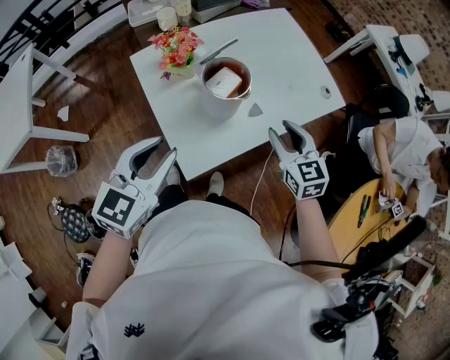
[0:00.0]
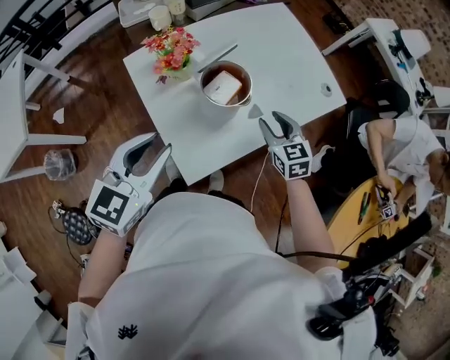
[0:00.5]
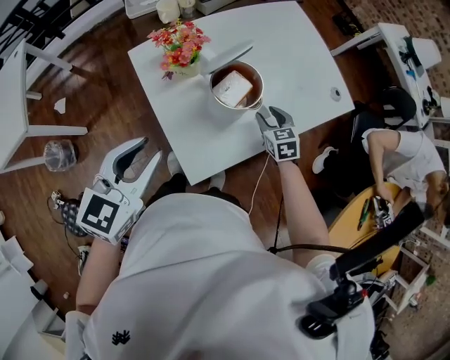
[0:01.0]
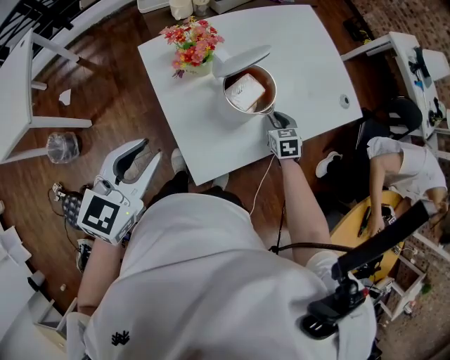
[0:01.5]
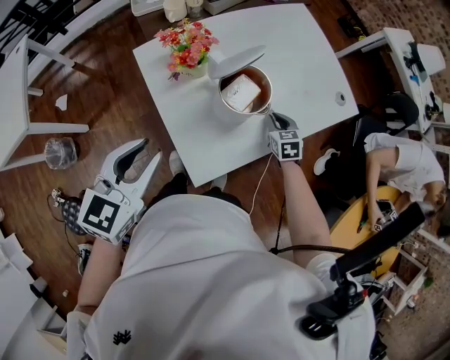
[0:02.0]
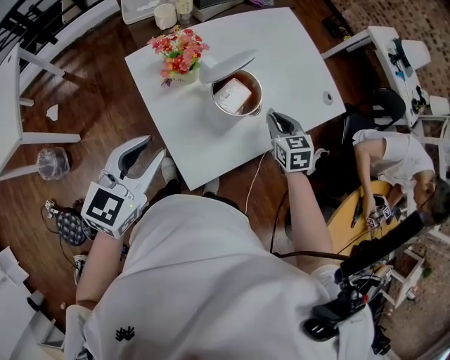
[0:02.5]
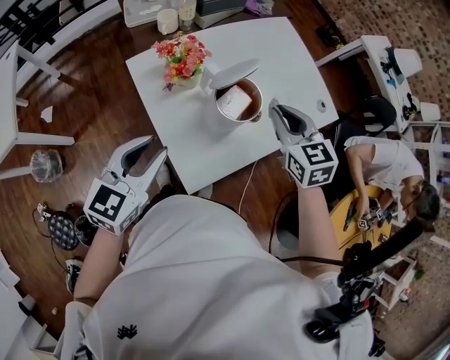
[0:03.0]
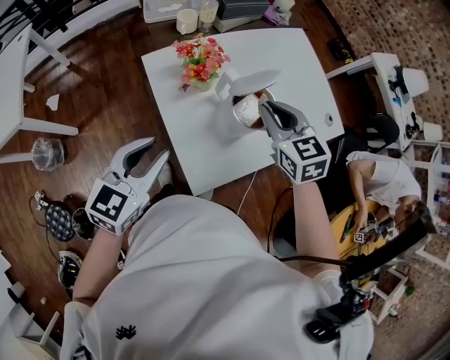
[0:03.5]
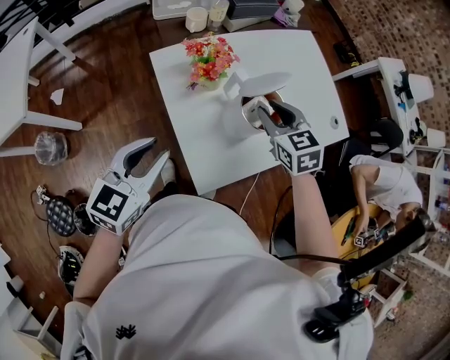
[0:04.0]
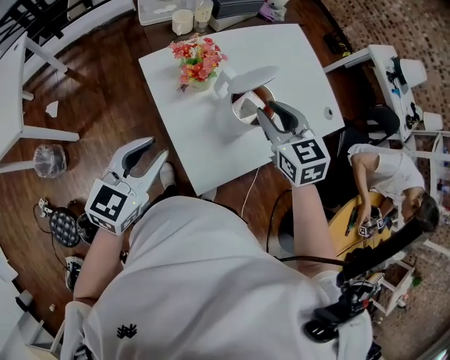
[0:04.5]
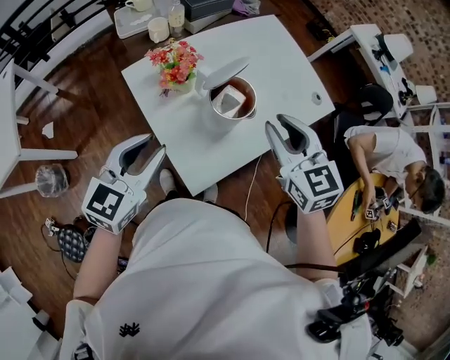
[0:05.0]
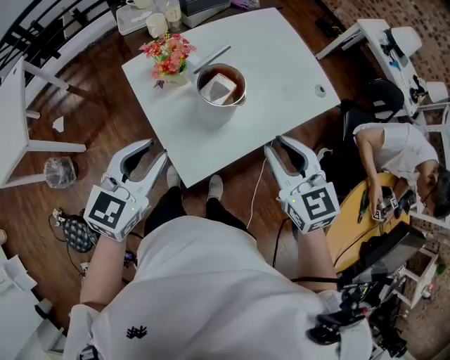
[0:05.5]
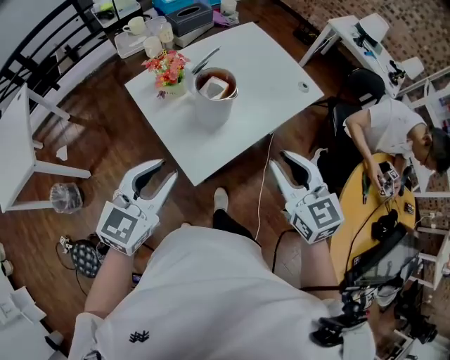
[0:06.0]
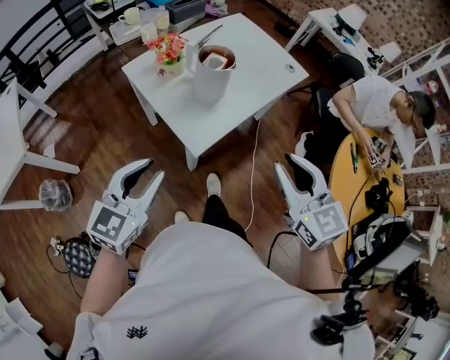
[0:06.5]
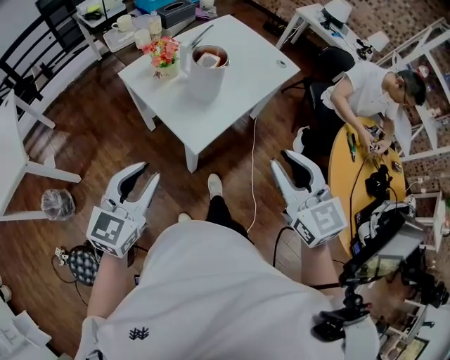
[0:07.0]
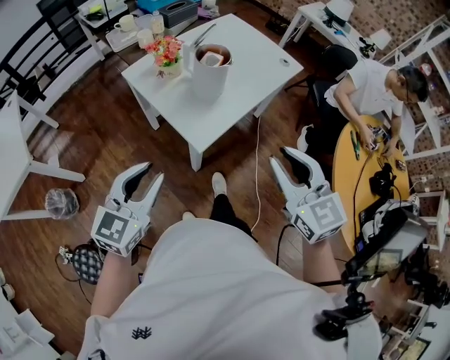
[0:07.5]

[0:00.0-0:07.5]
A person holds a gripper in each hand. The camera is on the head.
0:00.0 to 0:02.0: The right gripper shifts about 25 cm downward and forward, swivels about 20 degrees, and closes up. The left gripper is displaced to the left by roughly 5 cm.
0:02.0 to 0:04.0: The left gripper is displaced to the left by roughly 5 cm; the right gripper goes approximately 25 cm upward and to the left, and turns by about 20 degrees.
0:04.0 to 0:05.5: The left gripper moves to the right, approximately 10 cm. Meanwhile the right gripper travels backward, to the right and upward by about 20 cm.
0:05.5 to 0:07.5: The grippers both shift backward by some 25 cm.

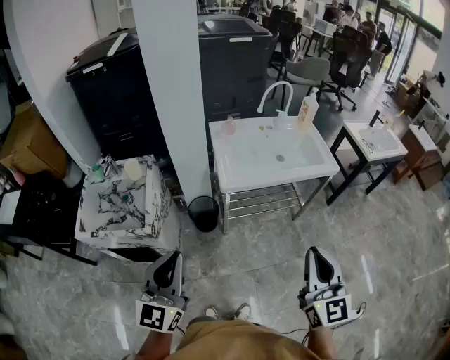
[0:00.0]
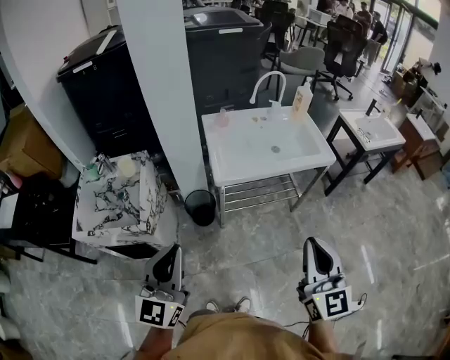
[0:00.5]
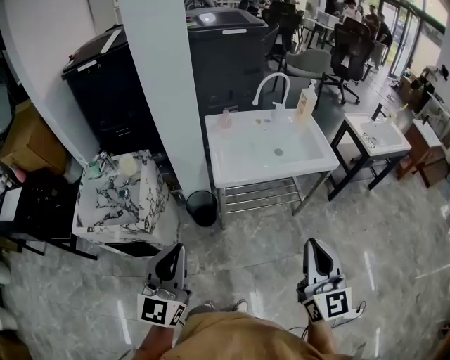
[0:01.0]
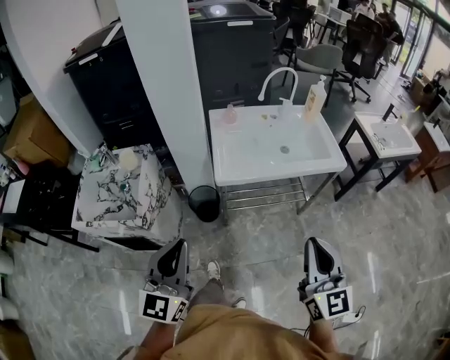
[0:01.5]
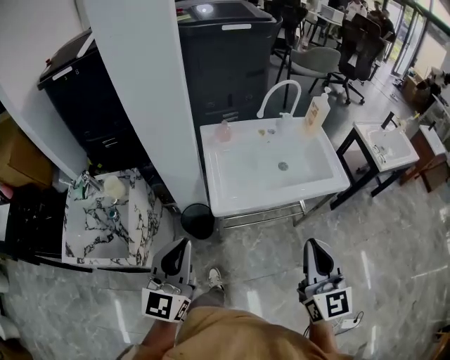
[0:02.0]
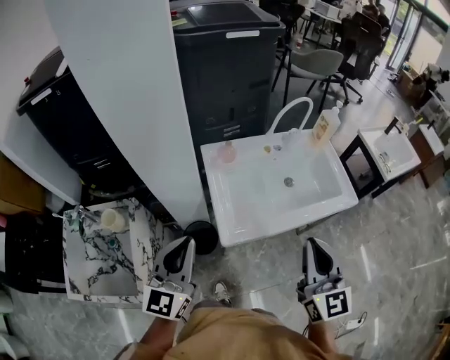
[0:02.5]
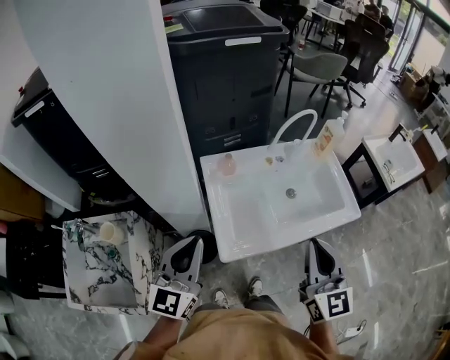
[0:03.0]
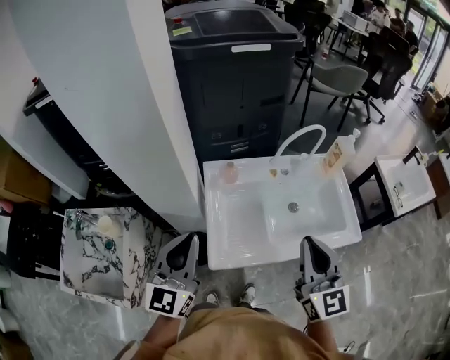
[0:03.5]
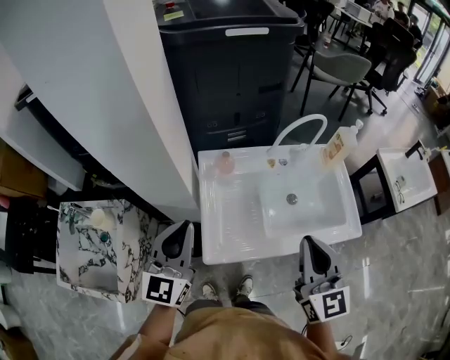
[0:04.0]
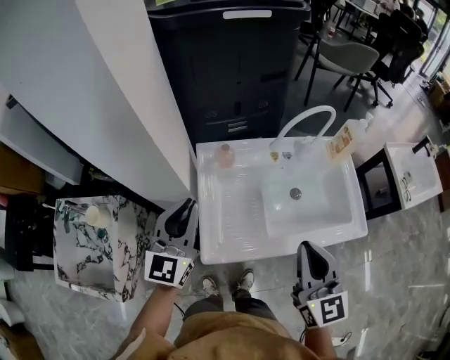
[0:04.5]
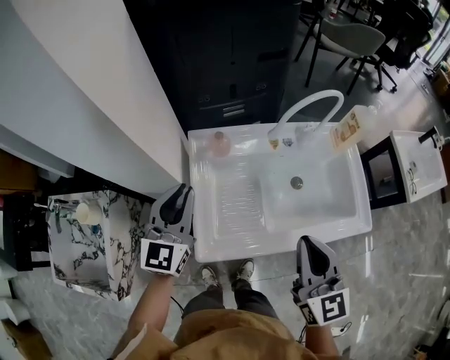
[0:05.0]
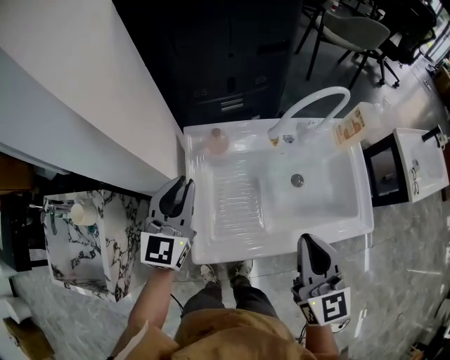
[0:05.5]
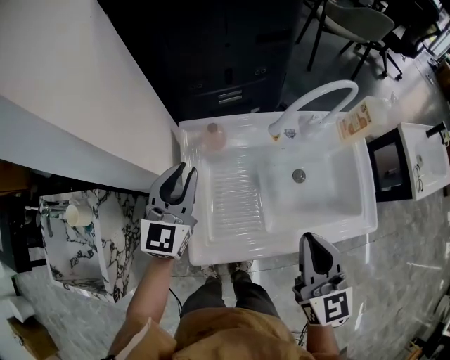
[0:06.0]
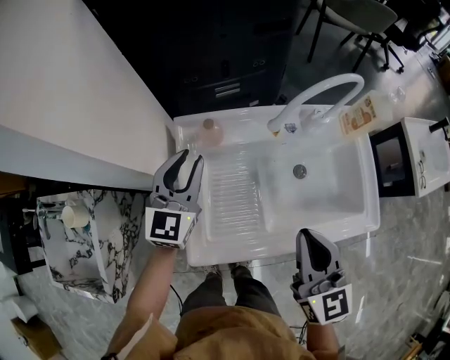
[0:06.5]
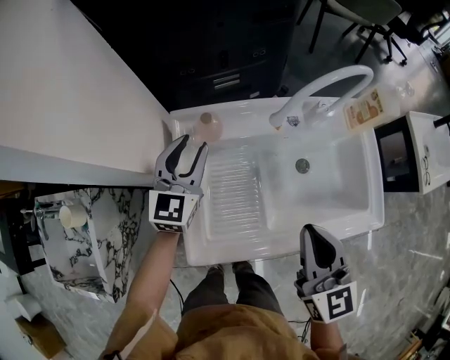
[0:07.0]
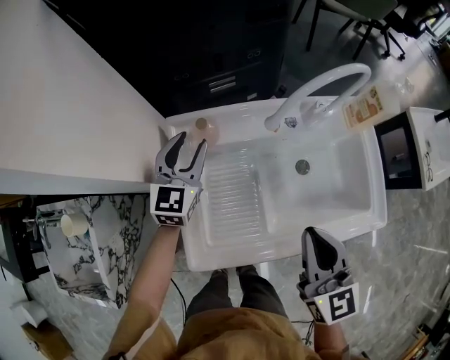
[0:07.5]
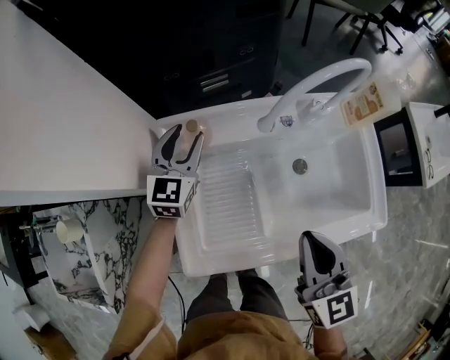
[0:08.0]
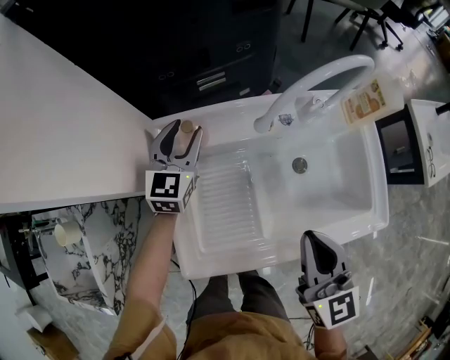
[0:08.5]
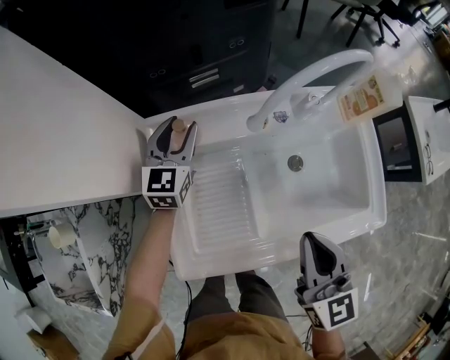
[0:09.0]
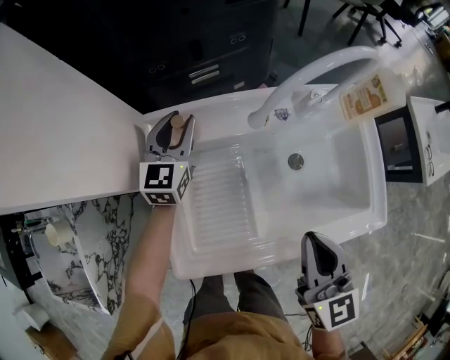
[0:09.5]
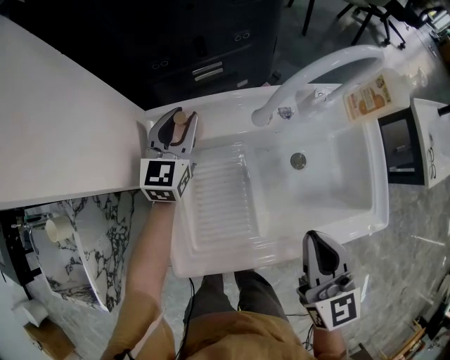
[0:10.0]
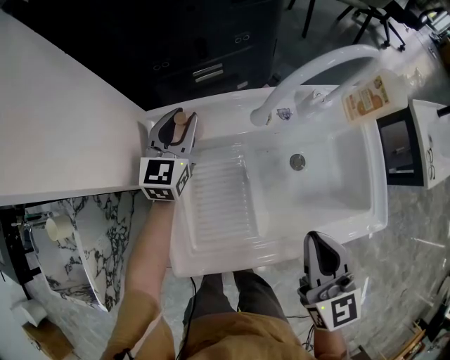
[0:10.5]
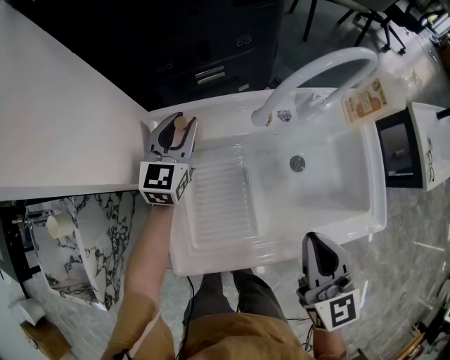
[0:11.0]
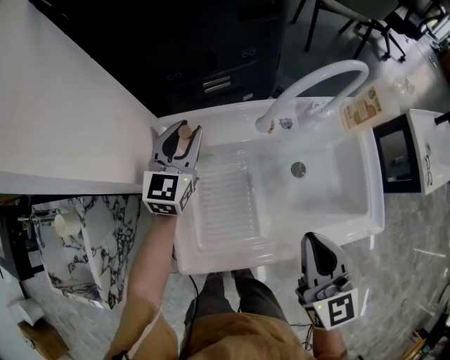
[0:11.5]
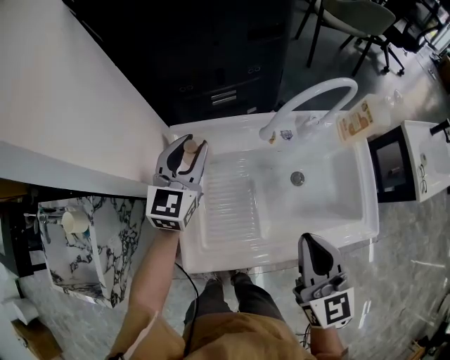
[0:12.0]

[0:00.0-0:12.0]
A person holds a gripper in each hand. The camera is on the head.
0:00.0 to 0:02.0: The grippers both shift forward by roughly 20 cm.
0:02.0 to 0:04.0: Both grippers move forward, about 25 cm.
0:04.0 to 0:06.0: The left gripper heads forward and downward, covering roughly 20 cm; the right gripper is displaced downward and forward by roughly 10 cm.
0:06.0 to 0:08.0: The right gripper changes place by roughly 5 cm. The left gripper moves forward and downward, roughly 15 cm, and opens its fingers.
0:08.0 to 0:10.0: There are only small adjustments of the grippers.
0:10.0 to 0:12.0: The right gripper is displaced upward by roughly 5 cm. The left gripper travels upward and backward by roughly 10 cm.

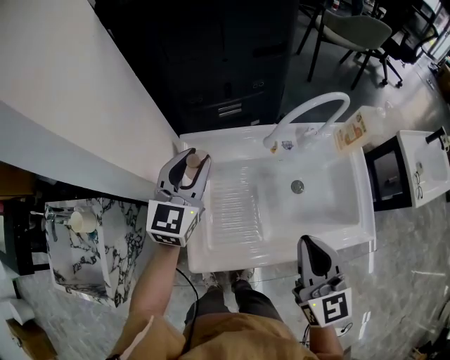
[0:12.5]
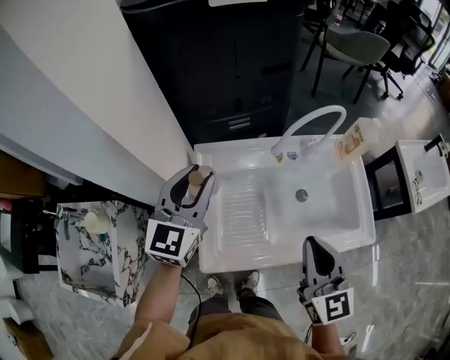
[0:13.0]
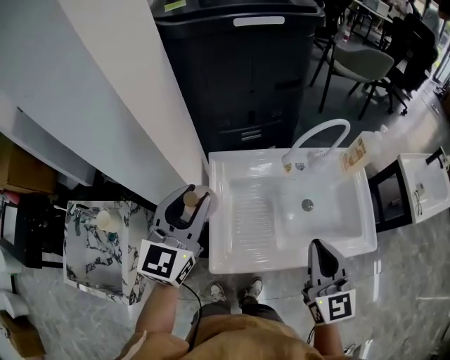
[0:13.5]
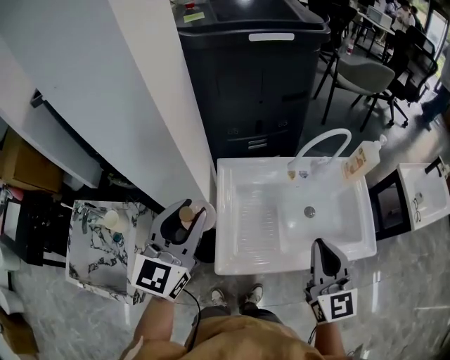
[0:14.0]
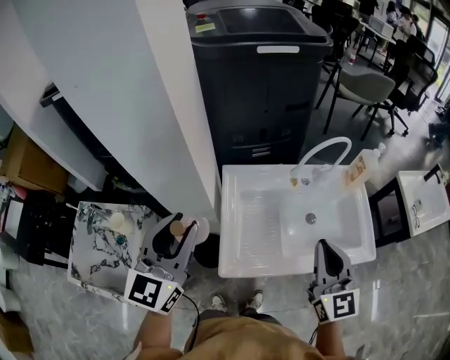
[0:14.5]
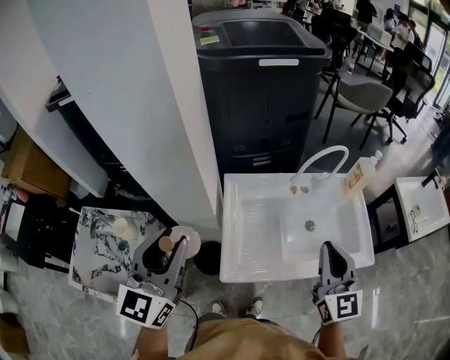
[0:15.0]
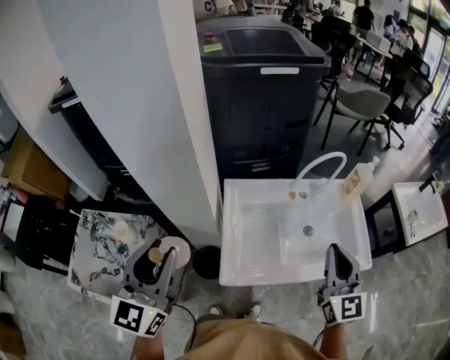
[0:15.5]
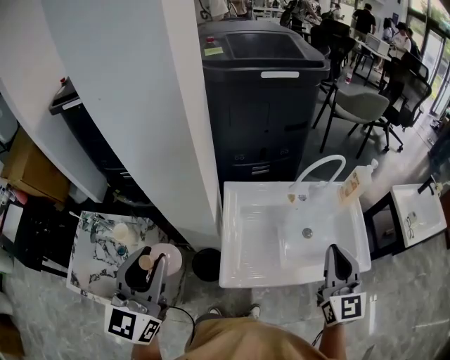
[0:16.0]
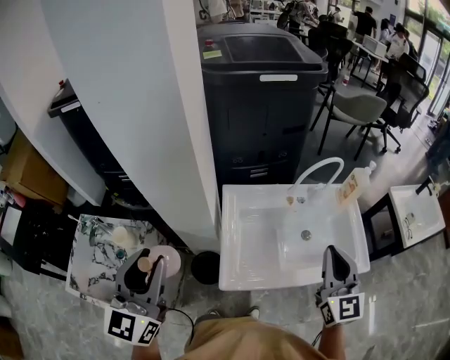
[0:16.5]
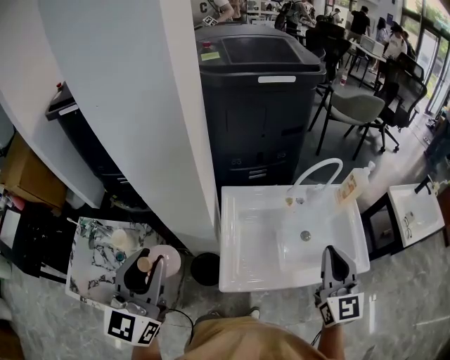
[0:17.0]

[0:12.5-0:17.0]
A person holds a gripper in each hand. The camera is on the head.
0:12.5 to 0:14.5: The left gripper travels backward, upward and to the left by about 30 cm, while the right gripper goes roughly 10 cm upward.
0:14.5 to 0:17.0: The left gripper travels to the left and backward by approximately 10 cm.

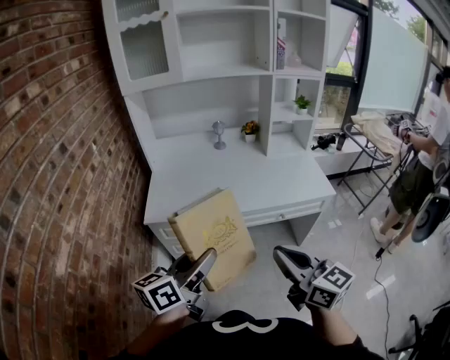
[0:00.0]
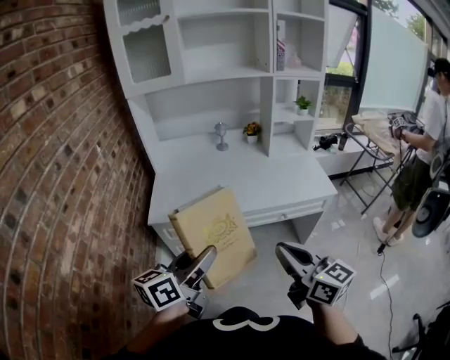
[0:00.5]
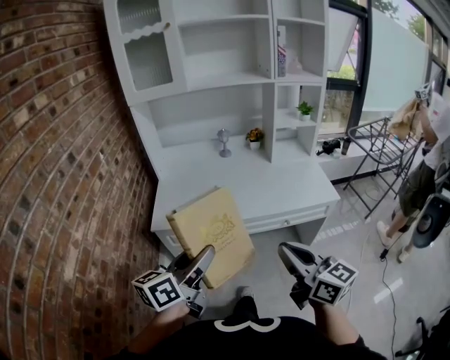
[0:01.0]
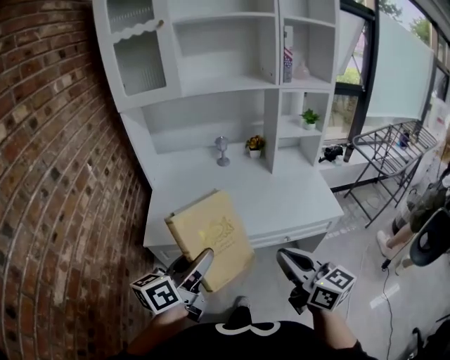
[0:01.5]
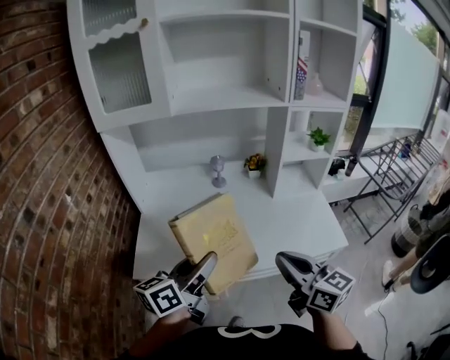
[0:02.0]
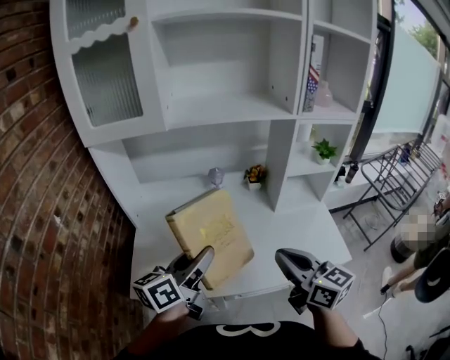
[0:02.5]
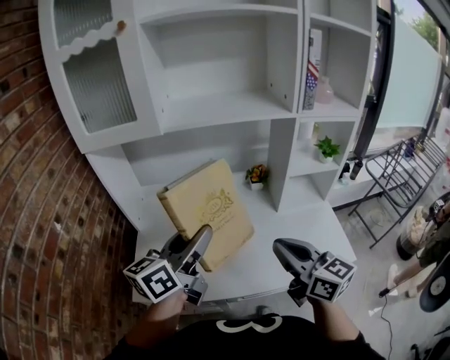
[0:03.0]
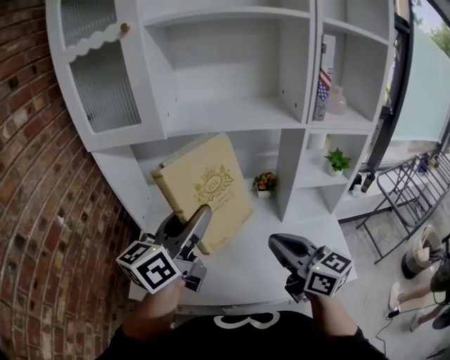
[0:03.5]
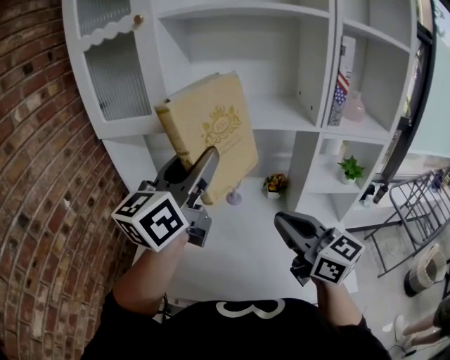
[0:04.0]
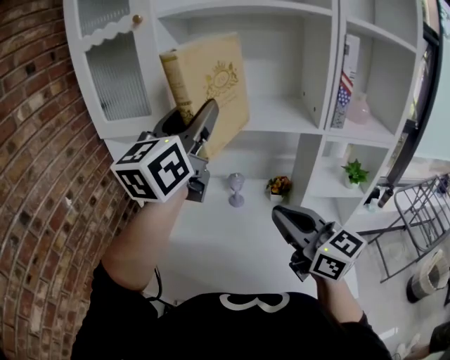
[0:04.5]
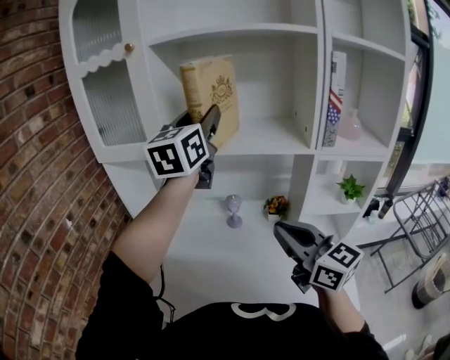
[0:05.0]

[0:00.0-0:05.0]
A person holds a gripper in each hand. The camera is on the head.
0:00.0 to 0:02.5: The grippers both shift forward by approximately 35 cm.
0:02.5 to 0:05.0: The left gripper is displaced upward and forward by some 40 cm, and rolls clockwise, seen from behind, by about 40 degrees, while the right gripper goes some 20 cm forward and upward, and changes its angle by roughly 20 degrees.
